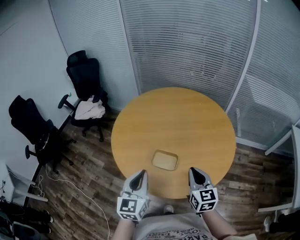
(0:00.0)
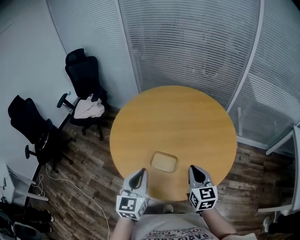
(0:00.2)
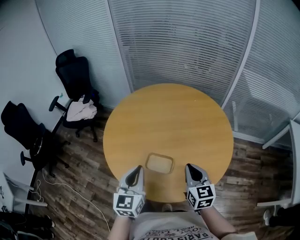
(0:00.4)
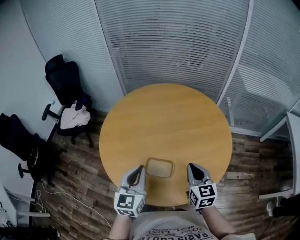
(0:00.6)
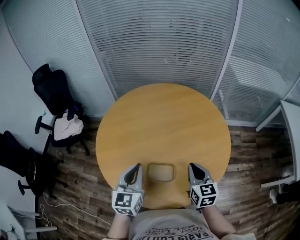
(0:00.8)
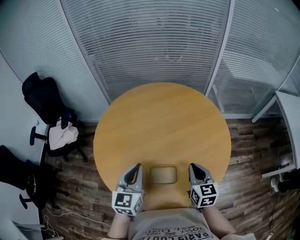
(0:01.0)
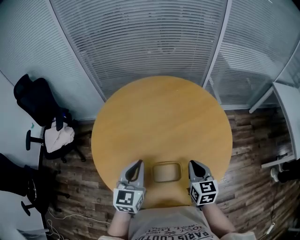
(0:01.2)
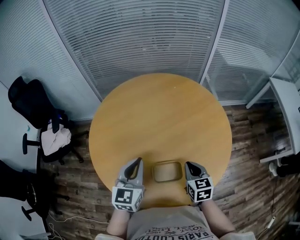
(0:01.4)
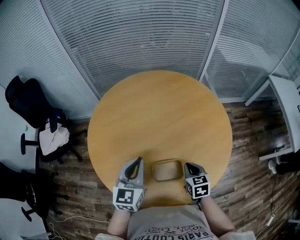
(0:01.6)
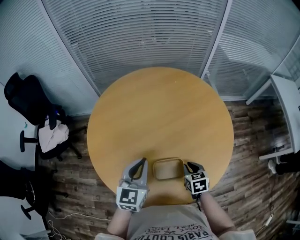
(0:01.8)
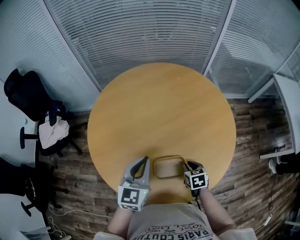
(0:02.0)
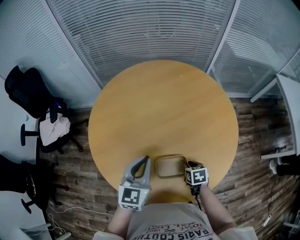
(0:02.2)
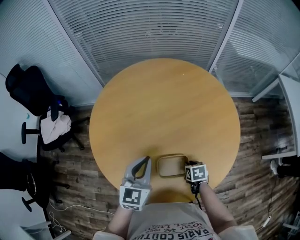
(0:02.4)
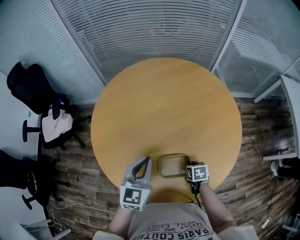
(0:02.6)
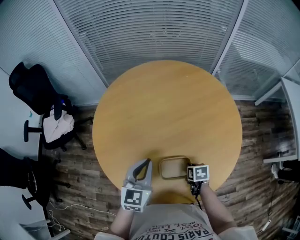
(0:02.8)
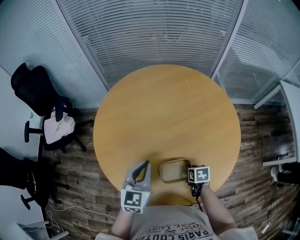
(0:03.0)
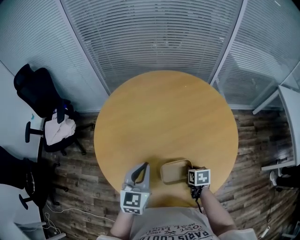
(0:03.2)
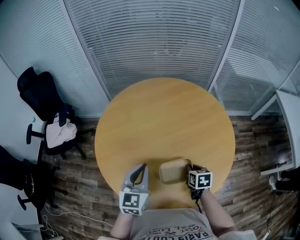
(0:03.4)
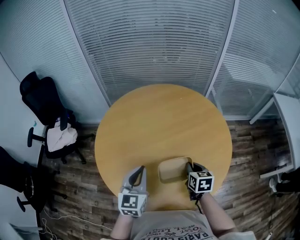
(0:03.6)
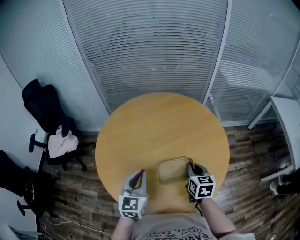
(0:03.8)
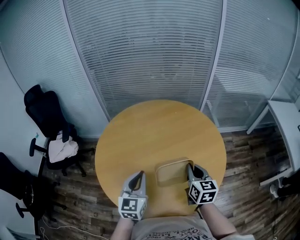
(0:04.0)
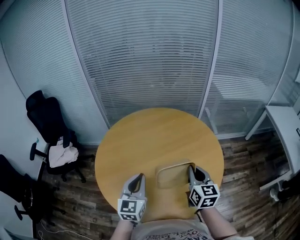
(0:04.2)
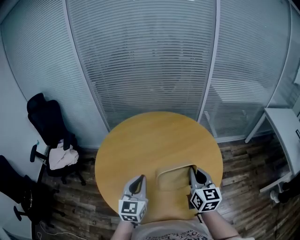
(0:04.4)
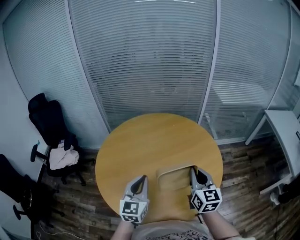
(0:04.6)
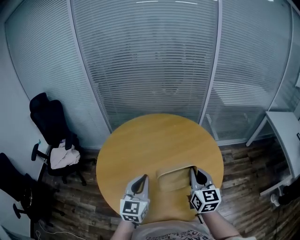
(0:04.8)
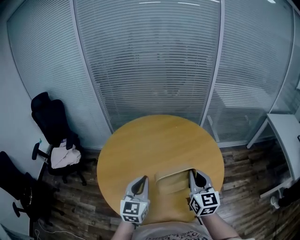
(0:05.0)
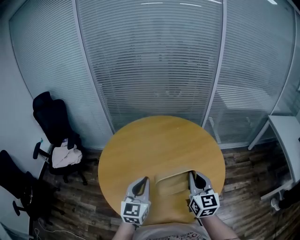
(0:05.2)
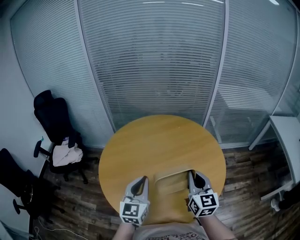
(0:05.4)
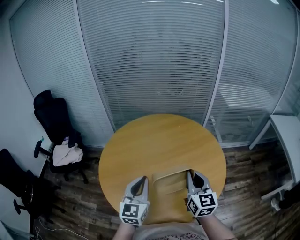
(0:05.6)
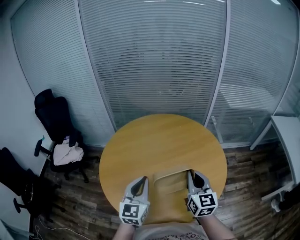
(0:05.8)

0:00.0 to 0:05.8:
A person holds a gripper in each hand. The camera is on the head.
0:00.0 to 0:01.4: The left gripper moves forward, about 25 cm, and turns by roughly 30 degrees; the right gripper is displaced forward, downward and to the left by roughly 15 cm, and rotates roughly 30 degrees.
0:01.4 to 0:02.8: The left gripper shifts by some 5 cm; the right gripper moves downward, some 15 cm, and points its fingers roughly 30 degrees further downward.
0:02.8 to 0:04.4: The left gripper is displaced upward by about 10 cm. Meanwhile the right gripper goes some 35 cm upward, and tilts its fingers about 60 degrees upward.
0:04.4 to 0:05.8: The grippers move only a little.

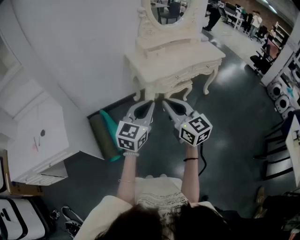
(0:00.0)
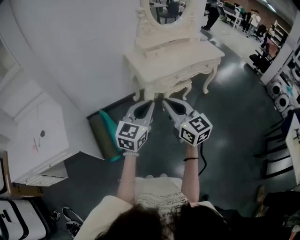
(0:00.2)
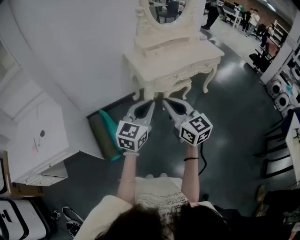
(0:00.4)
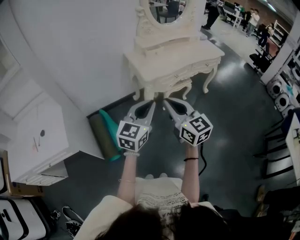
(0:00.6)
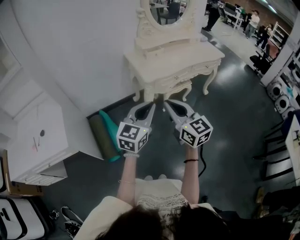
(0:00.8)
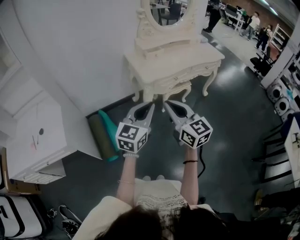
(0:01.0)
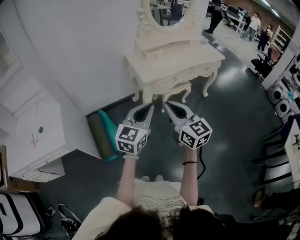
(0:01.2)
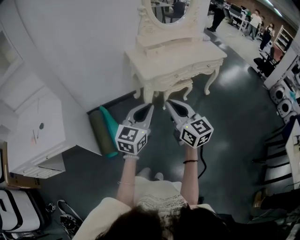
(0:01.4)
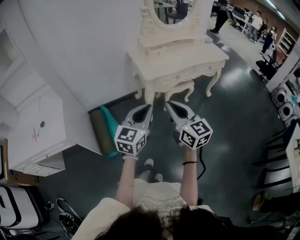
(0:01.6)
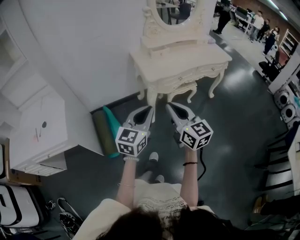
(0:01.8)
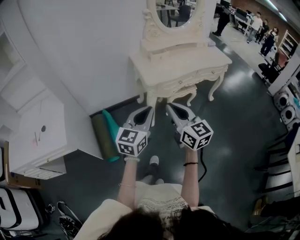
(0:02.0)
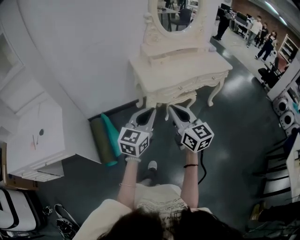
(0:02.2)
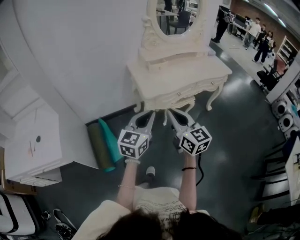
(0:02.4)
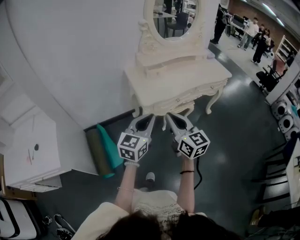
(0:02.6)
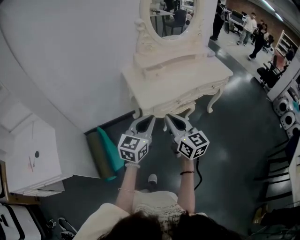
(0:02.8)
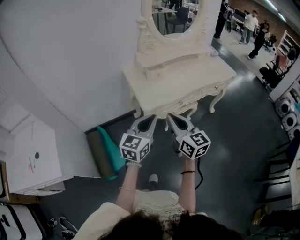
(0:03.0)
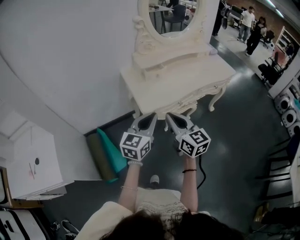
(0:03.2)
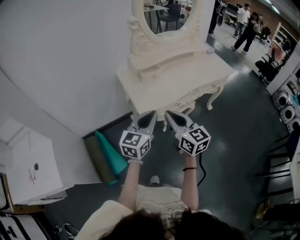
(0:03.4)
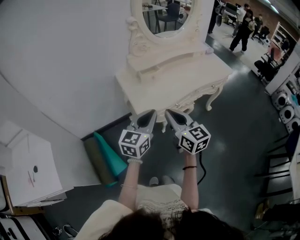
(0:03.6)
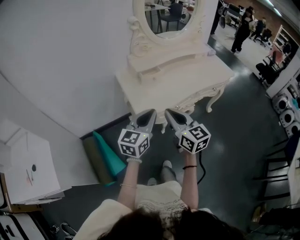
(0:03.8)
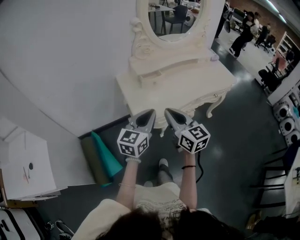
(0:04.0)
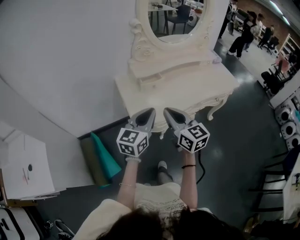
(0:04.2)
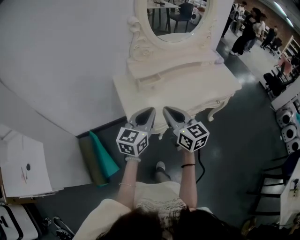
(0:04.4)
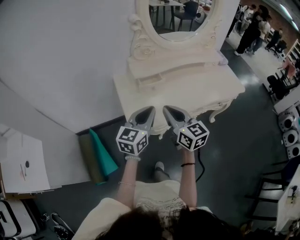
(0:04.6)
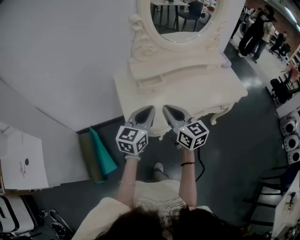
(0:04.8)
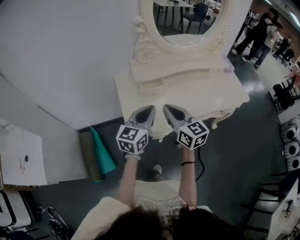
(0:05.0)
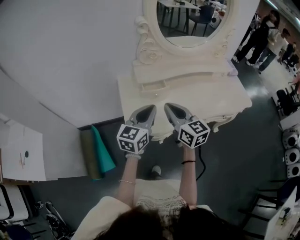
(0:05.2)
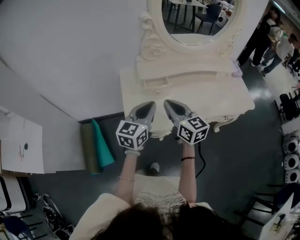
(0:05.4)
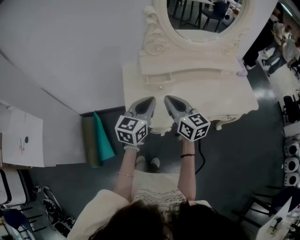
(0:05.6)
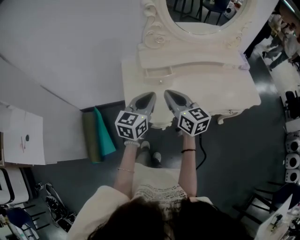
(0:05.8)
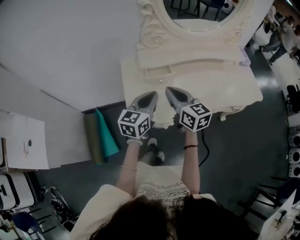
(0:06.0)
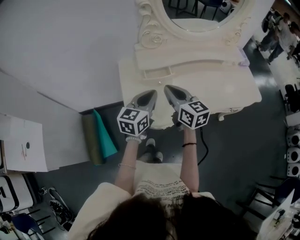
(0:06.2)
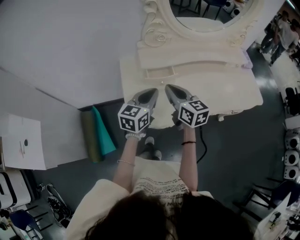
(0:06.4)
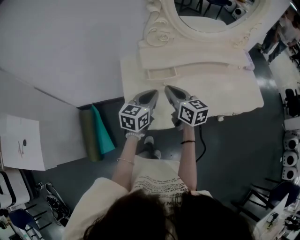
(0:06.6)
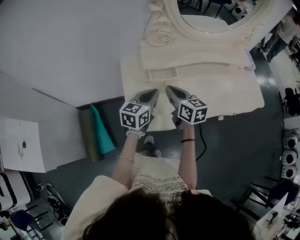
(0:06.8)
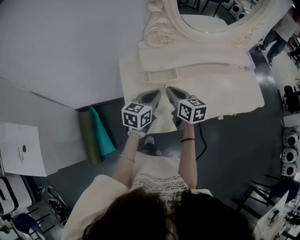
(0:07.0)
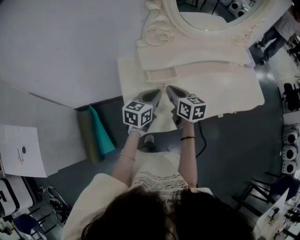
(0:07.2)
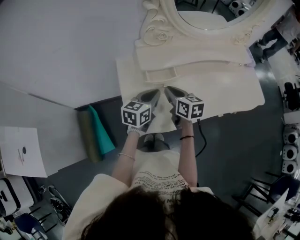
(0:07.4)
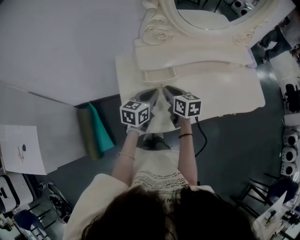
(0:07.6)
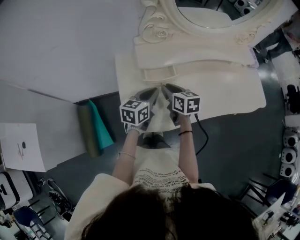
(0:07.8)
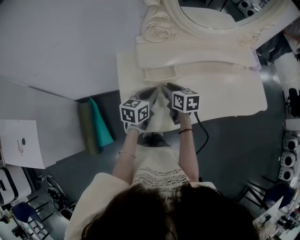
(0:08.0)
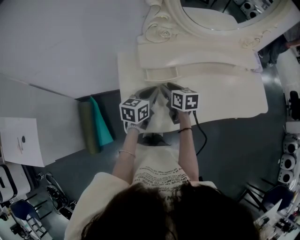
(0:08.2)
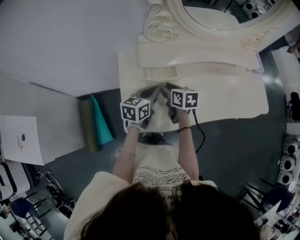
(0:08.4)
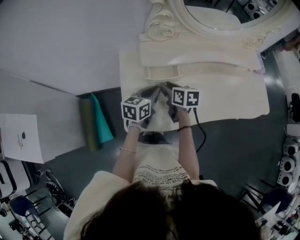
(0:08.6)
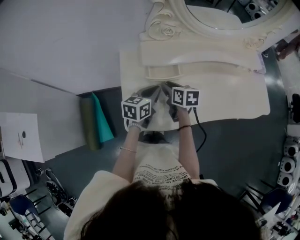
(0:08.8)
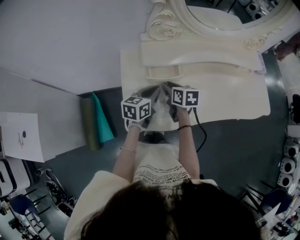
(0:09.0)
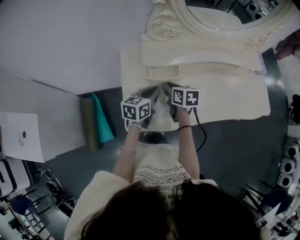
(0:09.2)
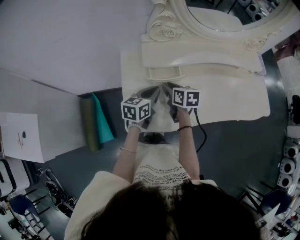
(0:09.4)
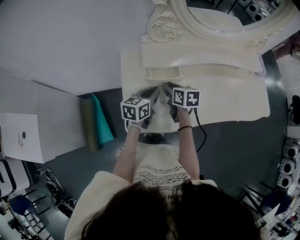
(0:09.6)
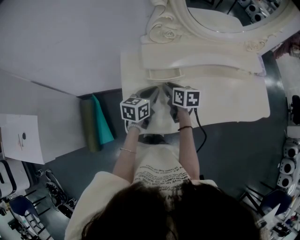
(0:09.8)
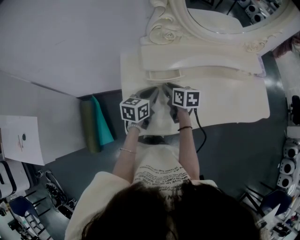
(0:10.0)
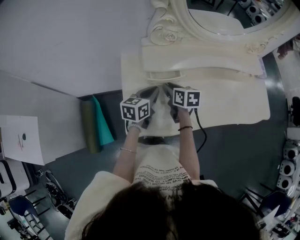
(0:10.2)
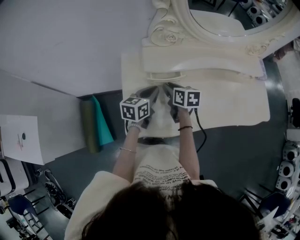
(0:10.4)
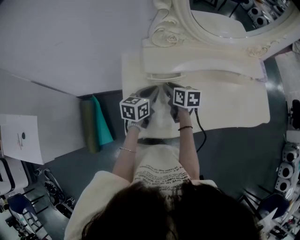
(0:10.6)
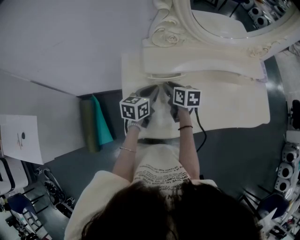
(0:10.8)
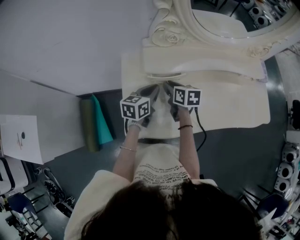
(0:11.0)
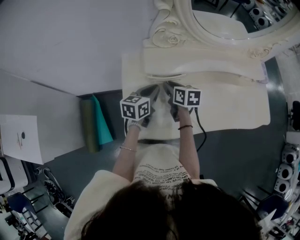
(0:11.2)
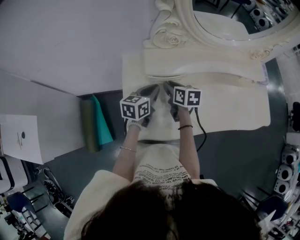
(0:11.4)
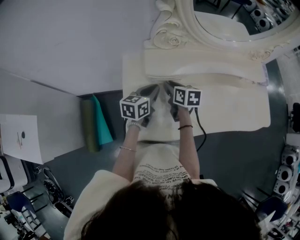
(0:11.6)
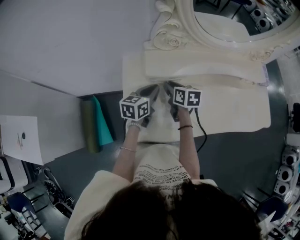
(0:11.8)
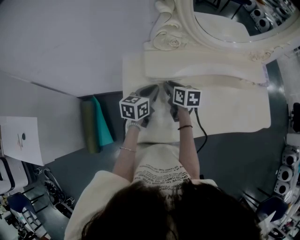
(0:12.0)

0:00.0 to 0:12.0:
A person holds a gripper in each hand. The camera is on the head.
0:00.0 to 0:01.6: The right gripper moves approximately 5 cm.
0:01.6 to 0:03.0: Both grippers travel together forward, roughly 25 cm.
0:03.0 to 0:04.4: The grippers both shift forward by approximately 20 cm.
0:04.4 to 0:06.0: The right gripper is displaced forward by about 15 cm; the left gripper travels forward and downward by roughly 15 cm.
0:06.0 to 0:07.6: Both grippers move downward and forward, roughly 15 cm. The right gripper swivels about 20 degrees.
0:07.6 to 0:09.0: The grippers make only small movements.
0:09.0 to 0:10.4: There are only small adjustments of the grippers.
0:10.4 to 0:12.0: The grippers move only a little.

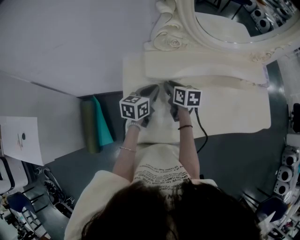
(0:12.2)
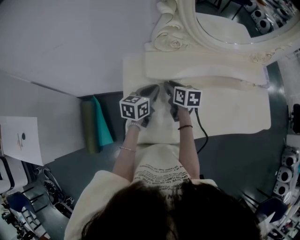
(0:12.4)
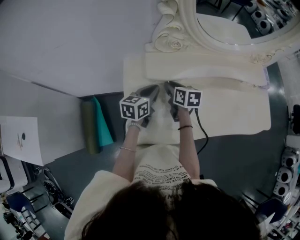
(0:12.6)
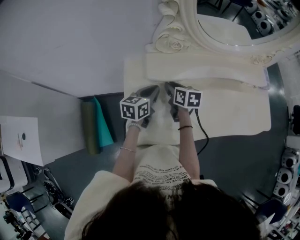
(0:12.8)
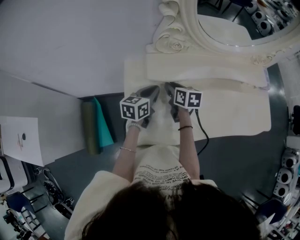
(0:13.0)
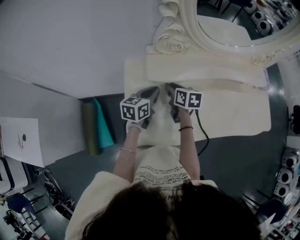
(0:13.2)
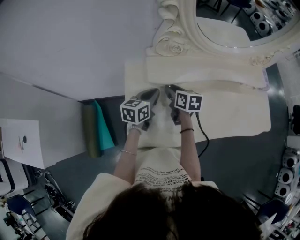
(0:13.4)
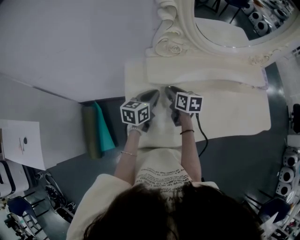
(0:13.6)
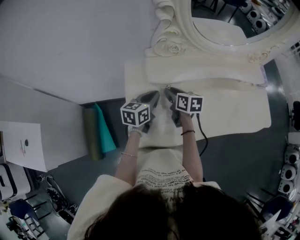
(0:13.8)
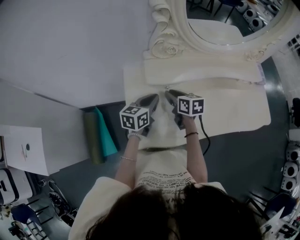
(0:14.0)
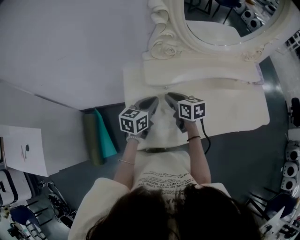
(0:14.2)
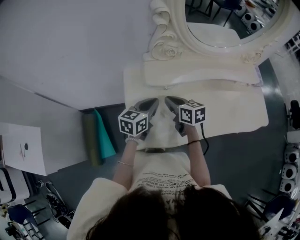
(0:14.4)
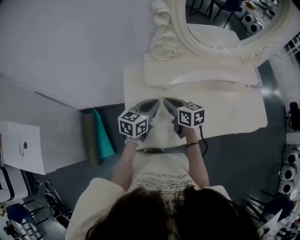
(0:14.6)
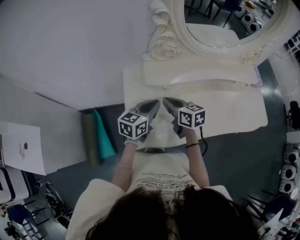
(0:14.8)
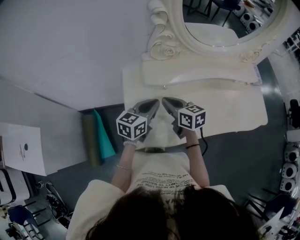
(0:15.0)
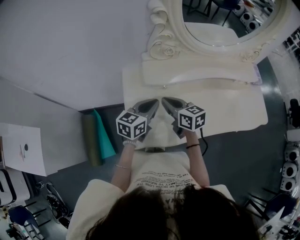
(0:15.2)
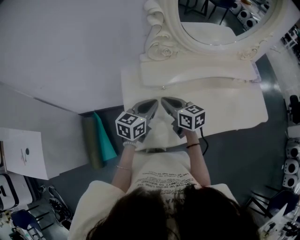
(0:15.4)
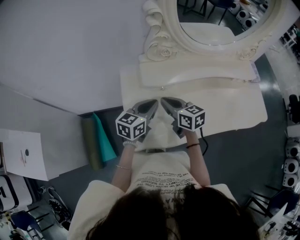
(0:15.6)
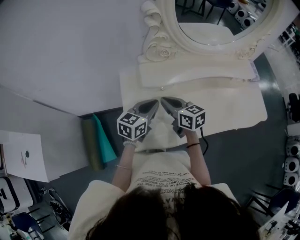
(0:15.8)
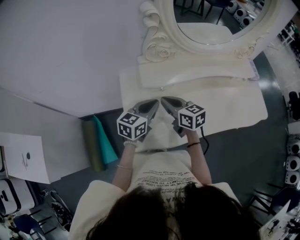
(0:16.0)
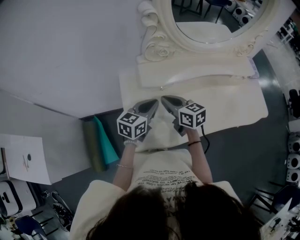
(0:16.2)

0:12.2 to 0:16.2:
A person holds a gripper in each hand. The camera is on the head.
0:12.2 to 0:13.6: Both grippers stay about where they are.
0:13.6 to 0:14.8: The left gripper shifts some 5 cm backward. The right gripper goes some 10 cm backward and upward, and closes up.
0:14.8 to 0:16.2: The grippers make only small movements.

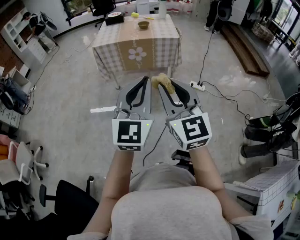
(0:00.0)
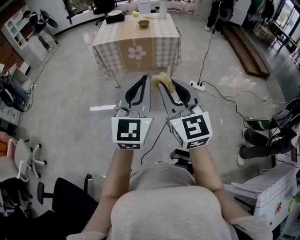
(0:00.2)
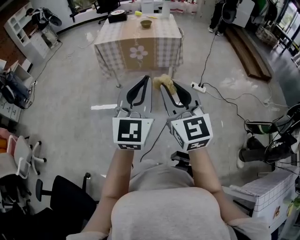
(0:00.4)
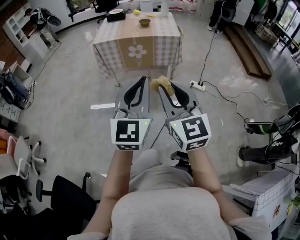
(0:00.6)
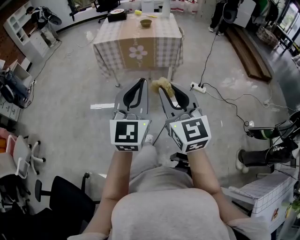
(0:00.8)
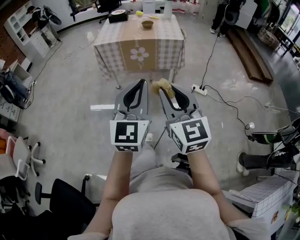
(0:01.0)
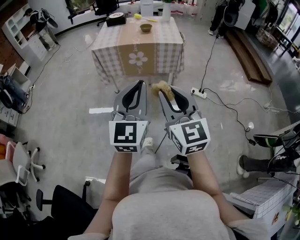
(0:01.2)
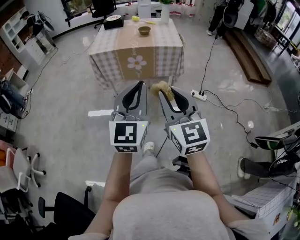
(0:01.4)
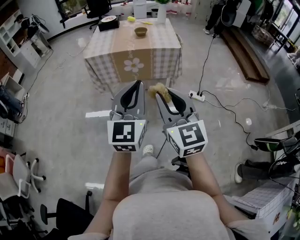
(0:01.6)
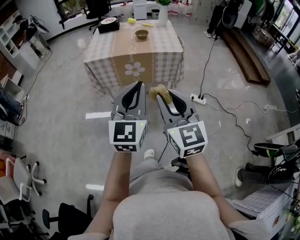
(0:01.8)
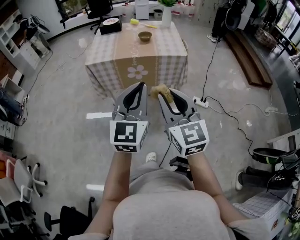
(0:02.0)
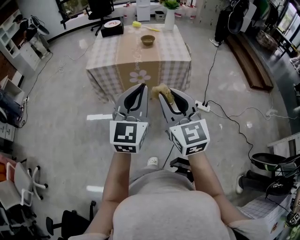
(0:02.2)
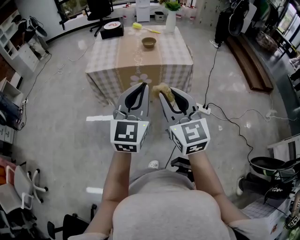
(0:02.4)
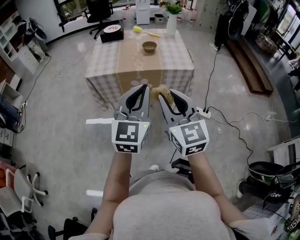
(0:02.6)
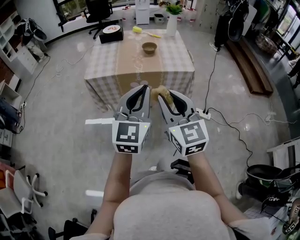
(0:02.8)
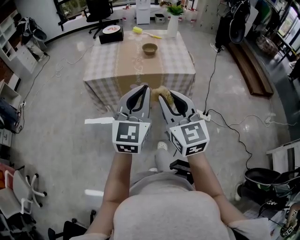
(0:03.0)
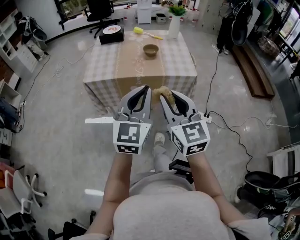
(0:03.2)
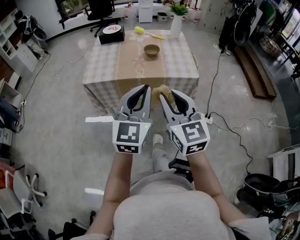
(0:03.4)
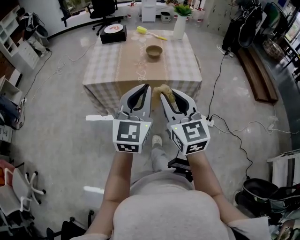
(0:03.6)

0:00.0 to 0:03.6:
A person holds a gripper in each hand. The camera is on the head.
0:00.0 to 0:01.8: The two grippers go approximately 20 cm forward.
0:01.8 to 0:03.6: Both grippers move forward, approximately 30 cm.
